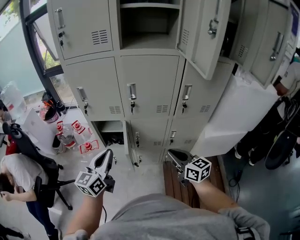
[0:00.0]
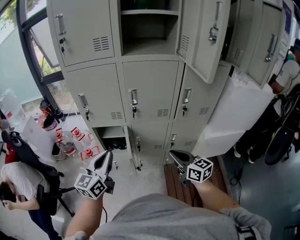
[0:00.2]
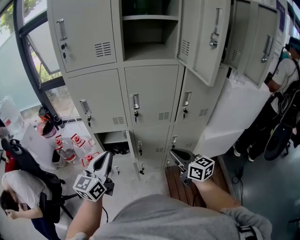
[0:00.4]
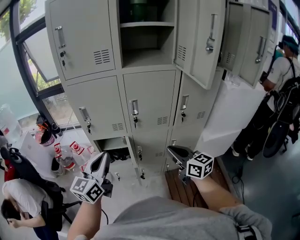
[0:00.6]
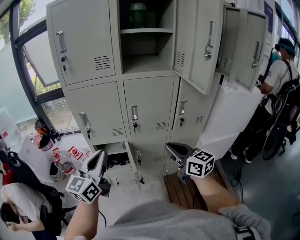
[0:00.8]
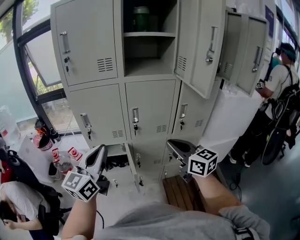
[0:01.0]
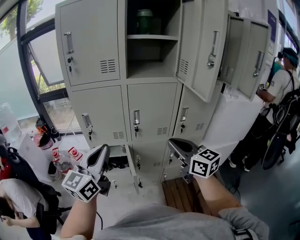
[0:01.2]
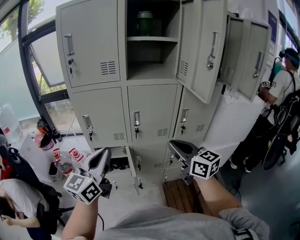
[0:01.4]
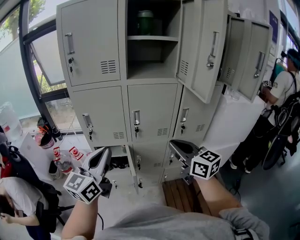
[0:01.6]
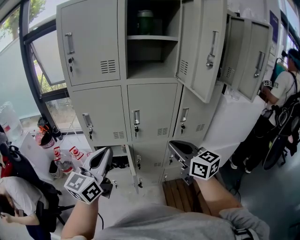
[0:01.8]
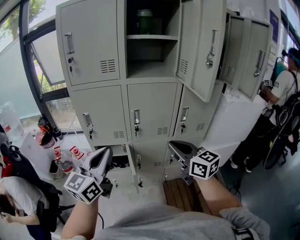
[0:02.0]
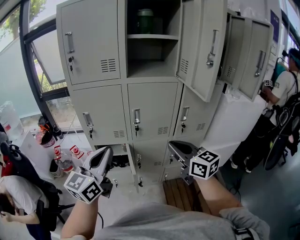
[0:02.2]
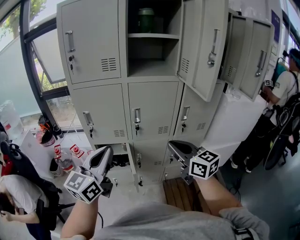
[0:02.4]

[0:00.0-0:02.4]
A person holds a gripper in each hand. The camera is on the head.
0:00.0 to 0:01.2: Both grippers travel together upward, some 20 cm.
0:01.2 to 0:02.4: The grippers stay close to where they were, moving slightly.

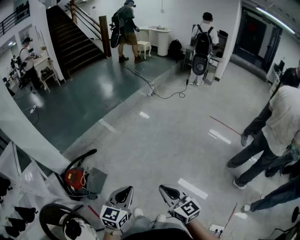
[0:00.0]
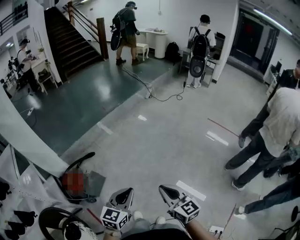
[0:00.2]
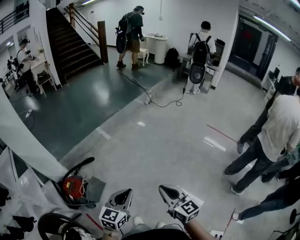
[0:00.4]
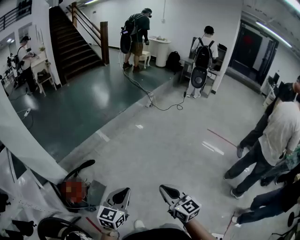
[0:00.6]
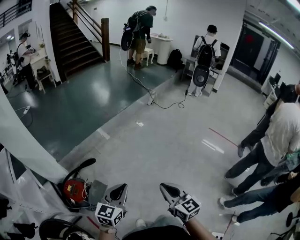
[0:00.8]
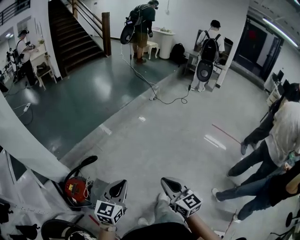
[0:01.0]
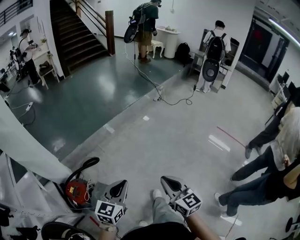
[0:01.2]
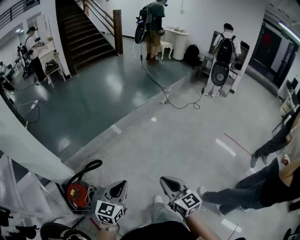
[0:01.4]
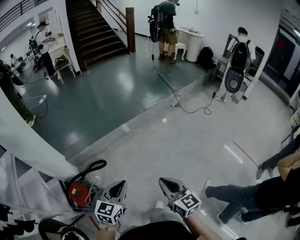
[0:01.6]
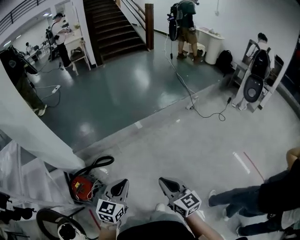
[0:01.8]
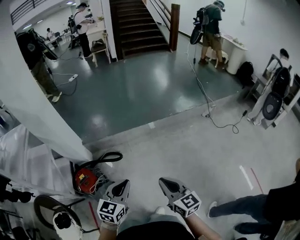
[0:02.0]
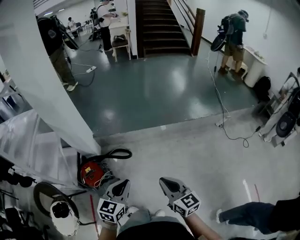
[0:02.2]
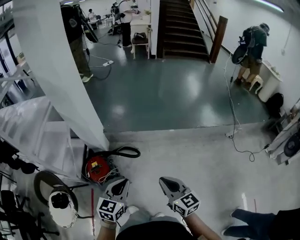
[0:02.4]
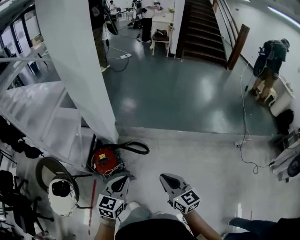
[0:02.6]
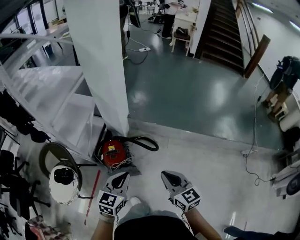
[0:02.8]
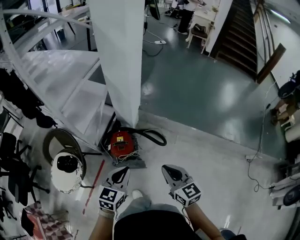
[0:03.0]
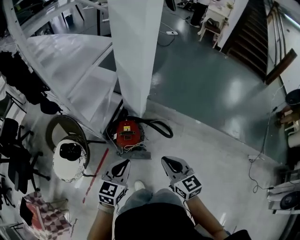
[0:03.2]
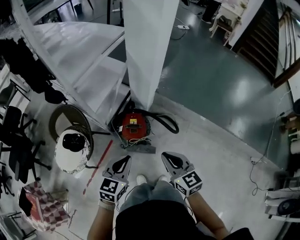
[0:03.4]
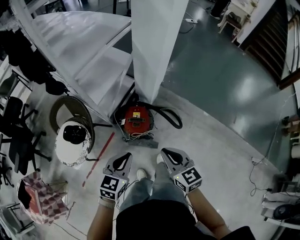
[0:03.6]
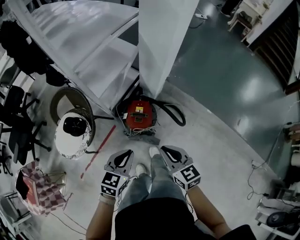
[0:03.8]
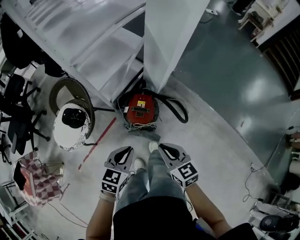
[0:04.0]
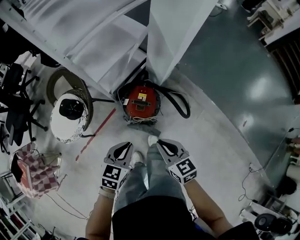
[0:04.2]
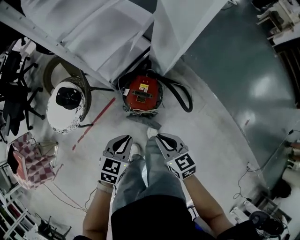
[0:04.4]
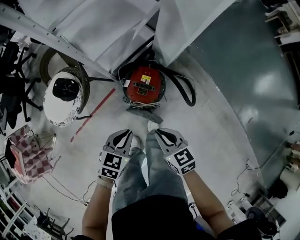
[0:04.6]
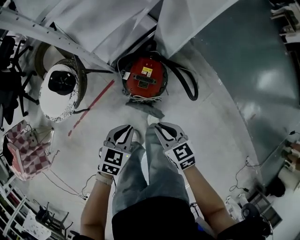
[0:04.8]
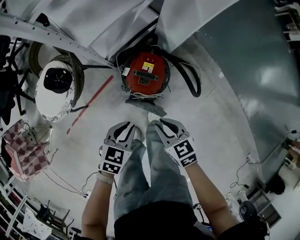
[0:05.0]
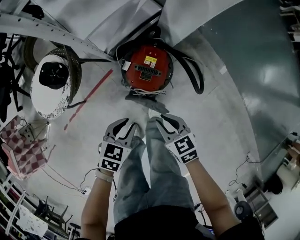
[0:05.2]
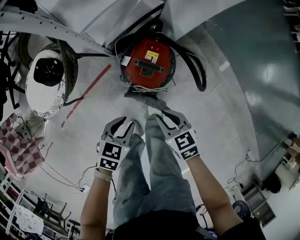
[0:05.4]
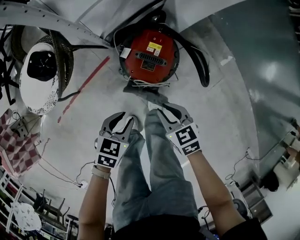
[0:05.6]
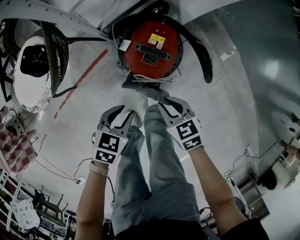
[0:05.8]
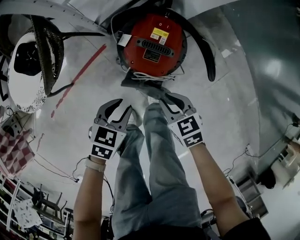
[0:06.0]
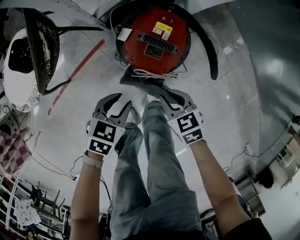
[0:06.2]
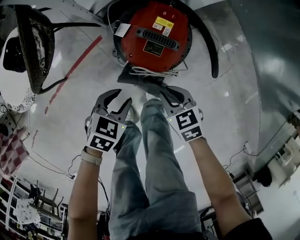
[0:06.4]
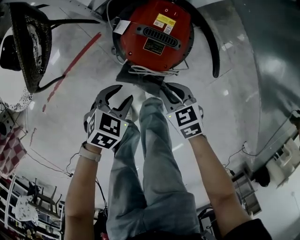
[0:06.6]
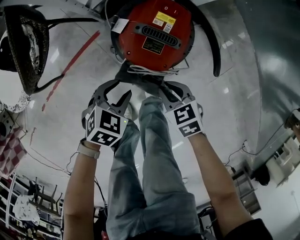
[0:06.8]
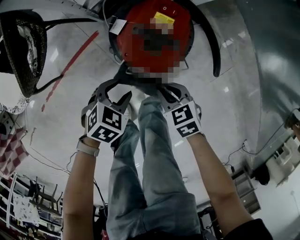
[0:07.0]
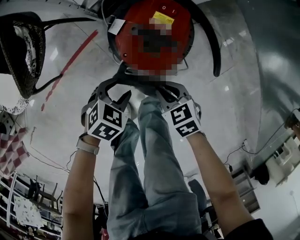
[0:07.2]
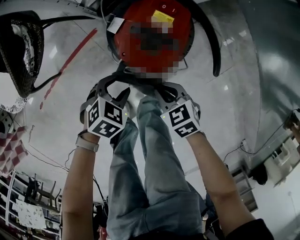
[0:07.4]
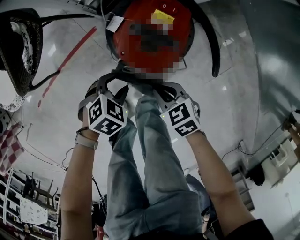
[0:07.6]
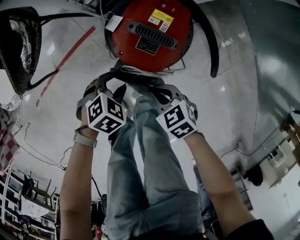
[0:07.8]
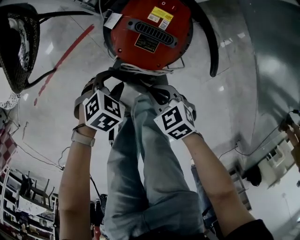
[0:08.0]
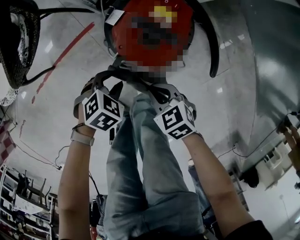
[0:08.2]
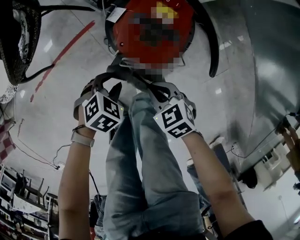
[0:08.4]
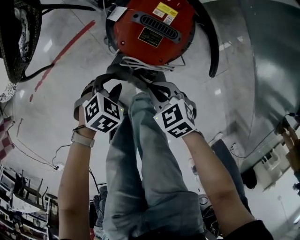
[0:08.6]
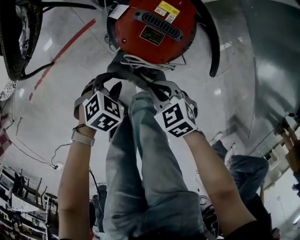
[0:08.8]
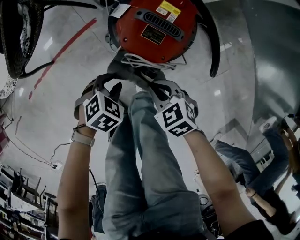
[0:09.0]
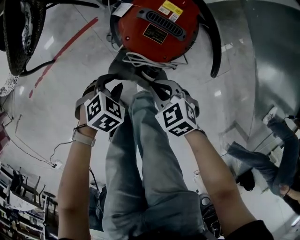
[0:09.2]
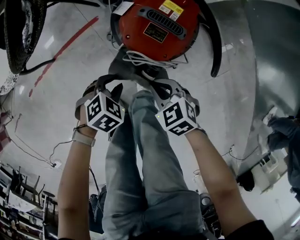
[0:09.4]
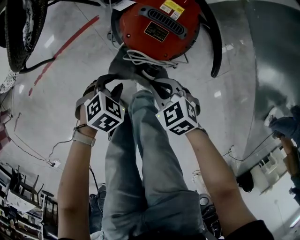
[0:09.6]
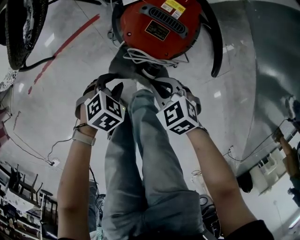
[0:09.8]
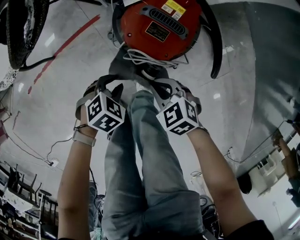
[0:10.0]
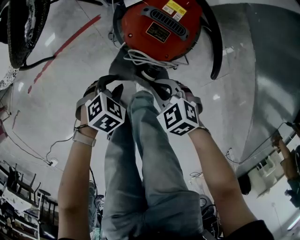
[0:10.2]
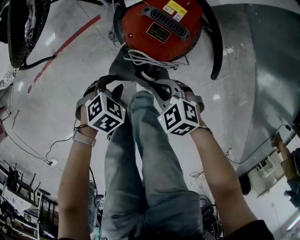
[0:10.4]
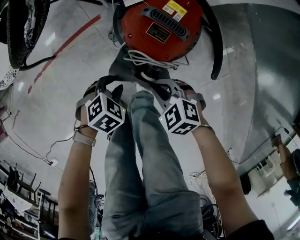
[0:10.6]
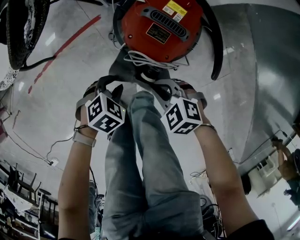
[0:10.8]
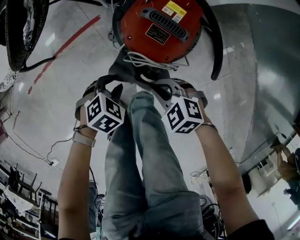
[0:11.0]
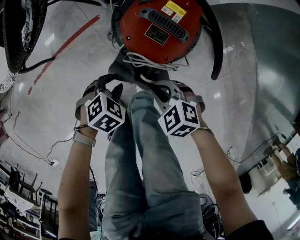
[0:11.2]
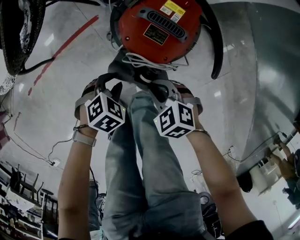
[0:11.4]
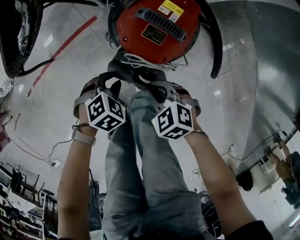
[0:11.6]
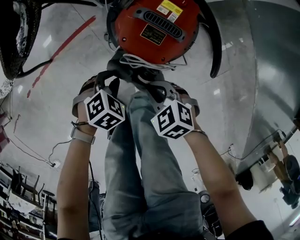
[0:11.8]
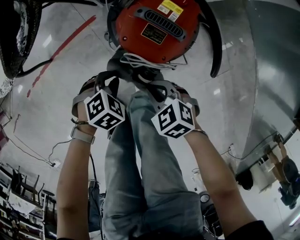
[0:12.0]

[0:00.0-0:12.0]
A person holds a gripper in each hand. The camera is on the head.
0:00.0 to 0:01.6: The two grippers go approximately 40 cm forward.
0:01.6 to 0:03.0: The left gripper shifts by about 35 cm, and changes its angle by approximately 50 degrees. Meanwhile the right gripper shifts by about 40 cm, and turns by roughly 60 degrees.
0:03.0 to 0:04.4: The left gripper moves downward, roughly 20 cm, and changes its angle by roughly 30 degrees. The right gripper is displaced downward, forward and to the left by some 30 cm, and swivels approximately 40 degrees.
0:04.4 to 0:06.0: Both grippers travel together downward, roughly 35 cm. The left gripper opens up, while the right gripper rotates roughly 20 degrees.
0:06.0 to 0:07.6: The grippers both shift downward by roughly 10 cm. The left gripper turns by some 20 degrees.
0:07.6 to 0:09.0: The left gripper moves about 5 cm.
0:09.0 to 0:10.4: The grippers make only small movements.
0:10.4 to 0:12.0: The grippers move only a little.

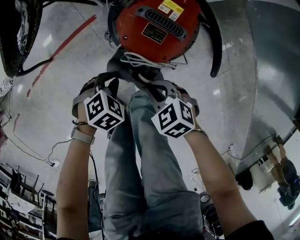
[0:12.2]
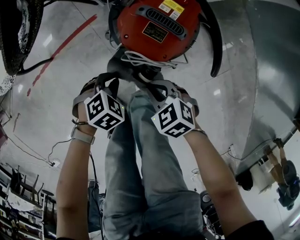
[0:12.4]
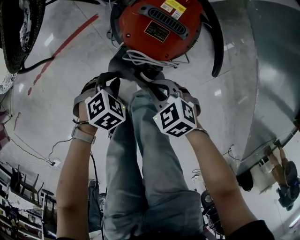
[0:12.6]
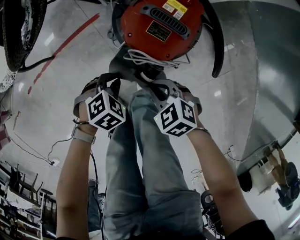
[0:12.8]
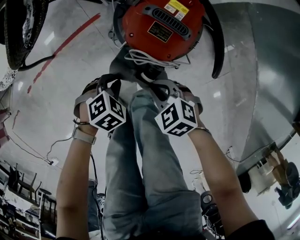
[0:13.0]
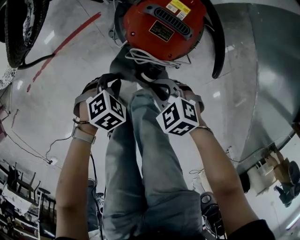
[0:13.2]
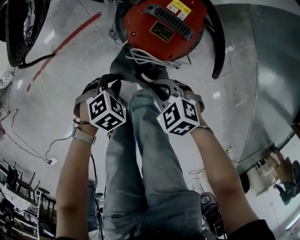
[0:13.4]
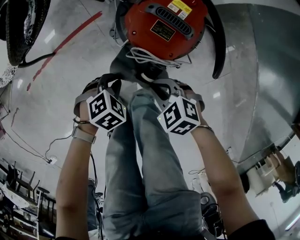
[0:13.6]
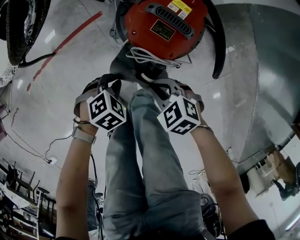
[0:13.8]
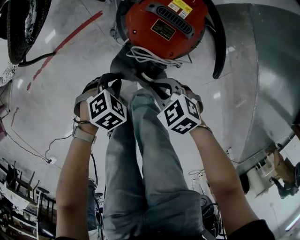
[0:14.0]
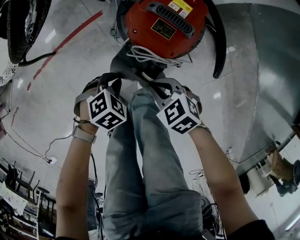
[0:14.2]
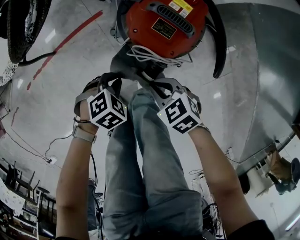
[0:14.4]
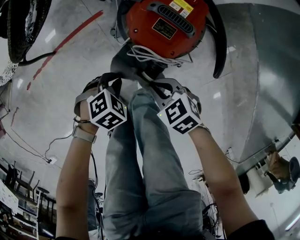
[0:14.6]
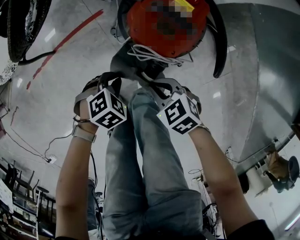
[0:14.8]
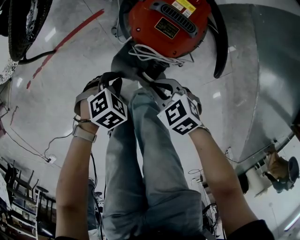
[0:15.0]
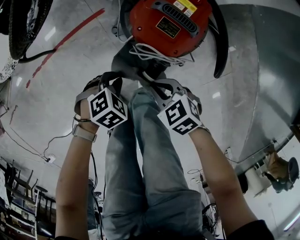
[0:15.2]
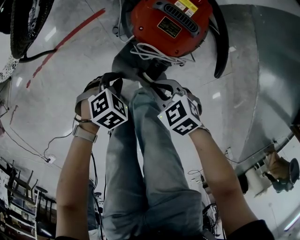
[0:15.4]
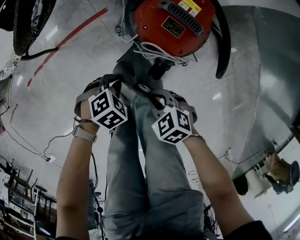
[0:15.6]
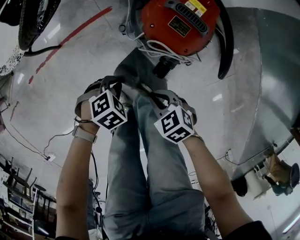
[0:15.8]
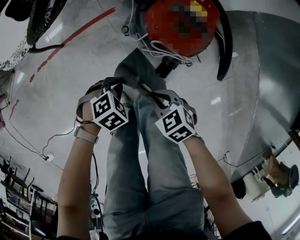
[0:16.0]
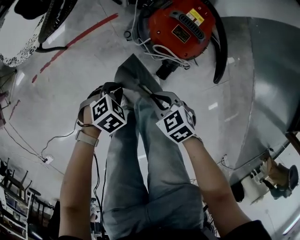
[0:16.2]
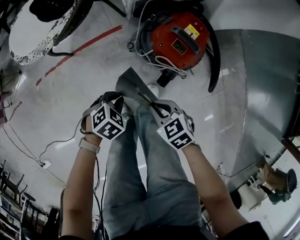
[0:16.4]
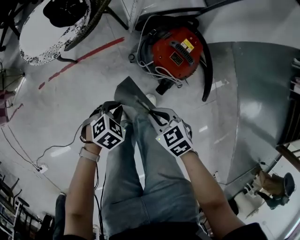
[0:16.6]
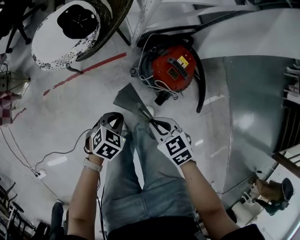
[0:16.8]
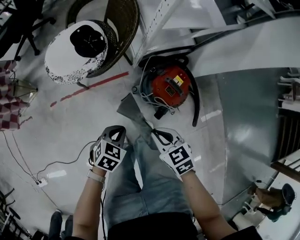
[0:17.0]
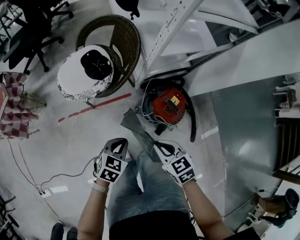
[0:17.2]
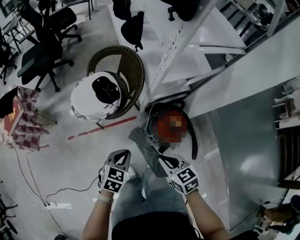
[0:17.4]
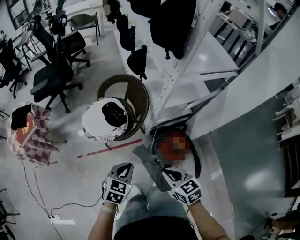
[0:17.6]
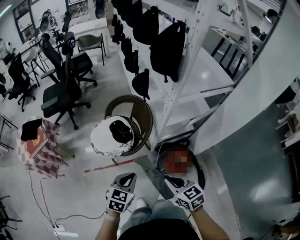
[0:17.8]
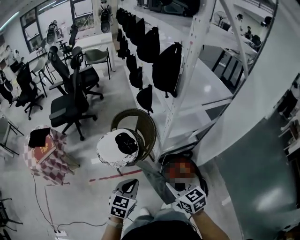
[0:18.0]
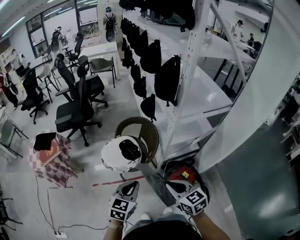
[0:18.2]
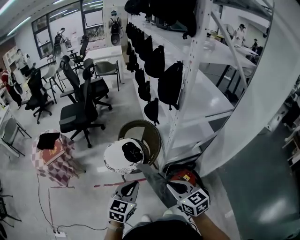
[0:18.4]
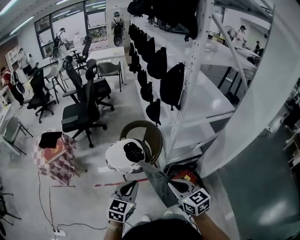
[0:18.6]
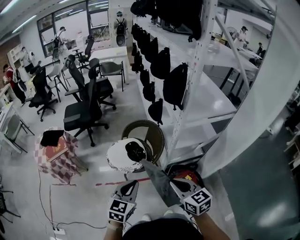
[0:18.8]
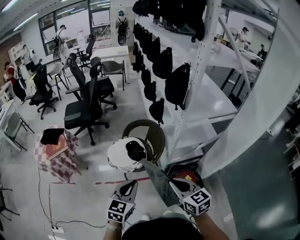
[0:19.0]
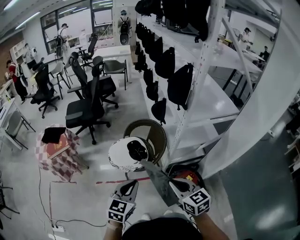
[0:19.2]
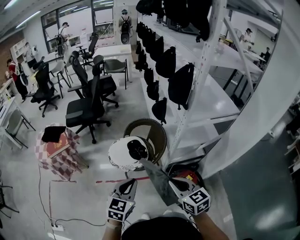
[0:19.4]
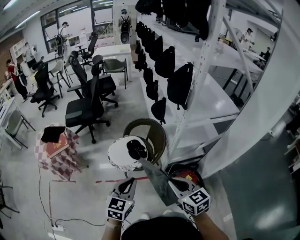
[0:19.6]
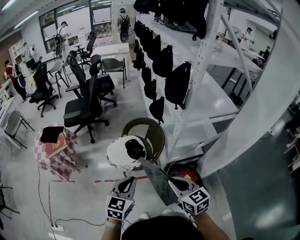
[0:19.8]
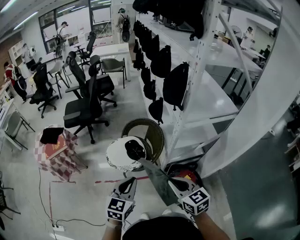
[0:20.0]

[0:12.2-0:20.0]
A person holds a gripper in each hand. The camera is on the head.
0:12.2 to 0:15.4: There are only small adjustments of the grippers.
0:15.4 to 0:16.8: Both grippers move upward, approximately 20 cm. The left gripper swivels about 30 degrees.
0:16.8 to 0:18.4: Both grippers move upward, roughly 50 cm. The left gripper angles its fingers upward, by about 40 degrees; the right gripper rotates some 30 degrees.
0:18.4 to 0:20.0: The grippers make only small movements.

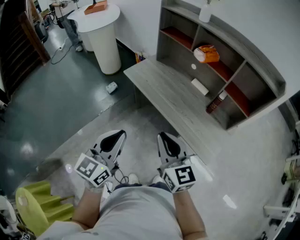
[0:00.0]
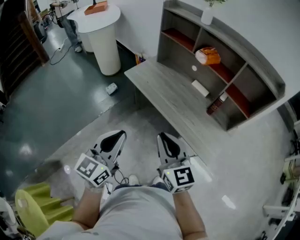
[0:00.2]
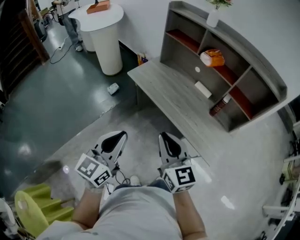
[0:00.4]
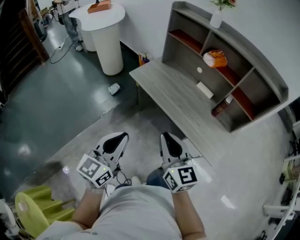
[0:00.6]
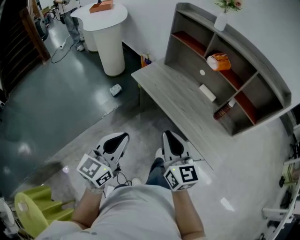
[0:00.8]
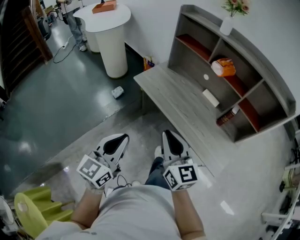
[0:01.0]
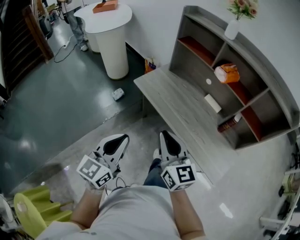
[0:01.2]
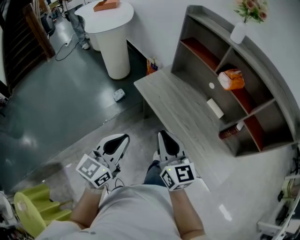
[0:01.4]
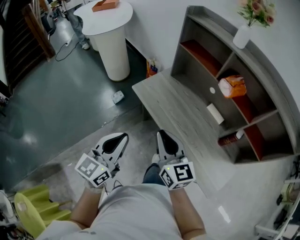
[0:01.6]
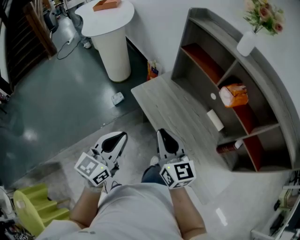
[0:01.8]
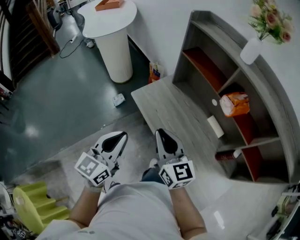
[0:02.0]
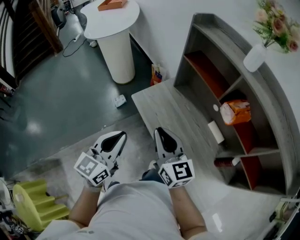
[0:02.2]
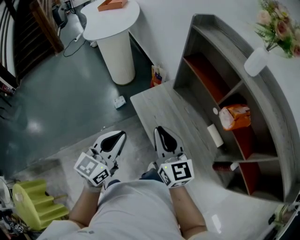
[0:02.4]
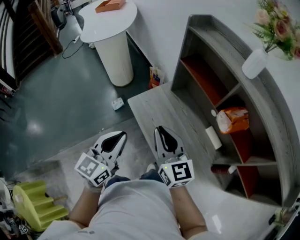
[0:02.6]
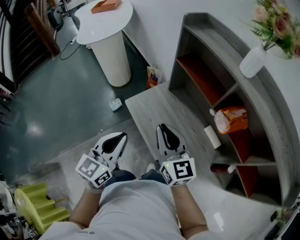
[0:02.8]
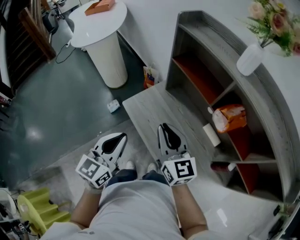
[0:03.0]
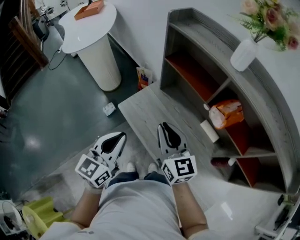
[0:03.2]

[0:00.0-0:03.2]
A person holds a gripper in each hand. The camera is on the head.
0:00.0 to 0:01.6: Both grippers travel together forward and to the left, approximately 25 cm.
0:01.6 to 0:03.2: Both grippers travel together forward, about 20 cm.
